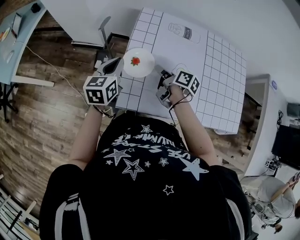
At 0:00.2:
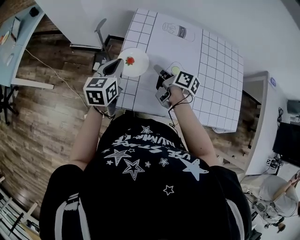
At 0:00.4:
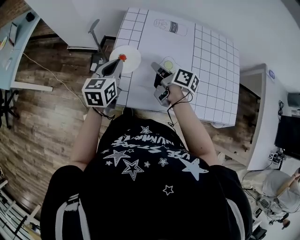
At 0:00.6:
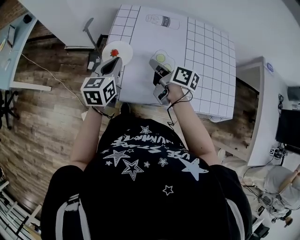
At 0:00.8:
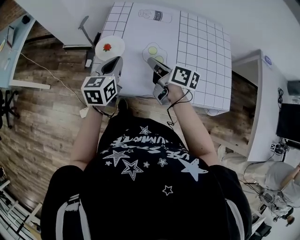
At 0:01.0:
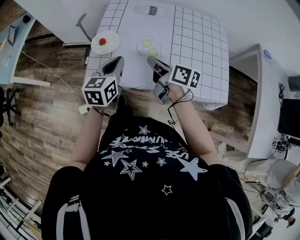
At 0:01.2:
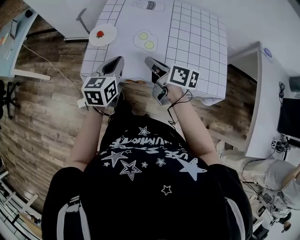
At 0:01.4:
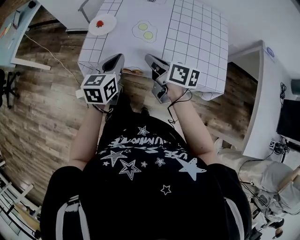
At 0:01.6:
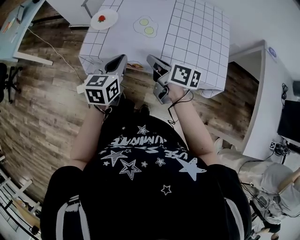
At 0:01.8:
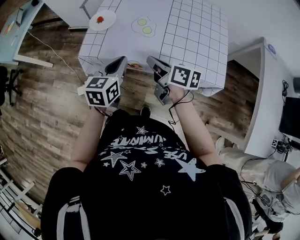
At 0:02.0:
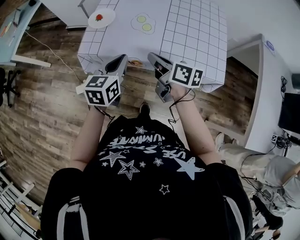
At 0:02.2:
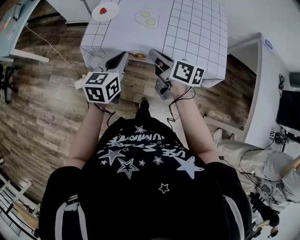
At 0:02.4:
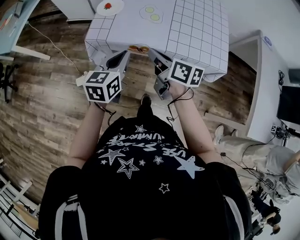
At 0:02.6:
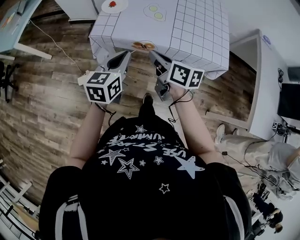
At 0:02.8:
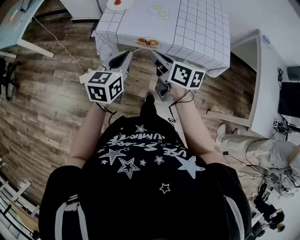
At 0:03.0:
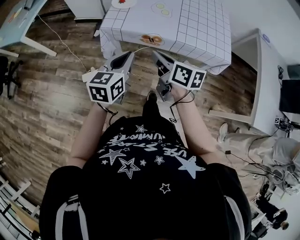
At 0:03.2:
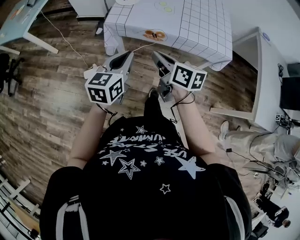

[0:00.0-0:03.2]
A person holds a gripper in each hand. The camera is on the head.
0:00.0 to 0:01.6: The left gripper shifts by approximately 35 cm.
0:01.6 to 0:03.2: The left gripper moves about 20 cm.

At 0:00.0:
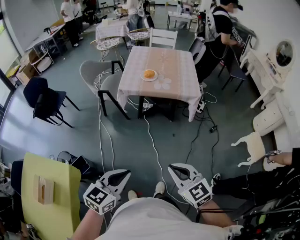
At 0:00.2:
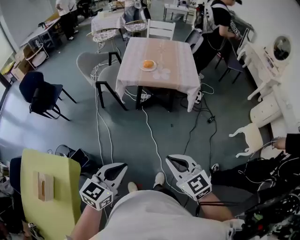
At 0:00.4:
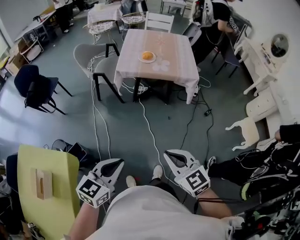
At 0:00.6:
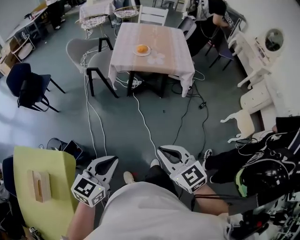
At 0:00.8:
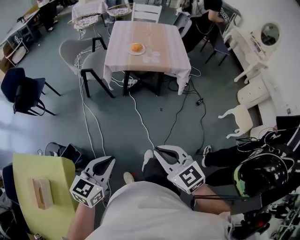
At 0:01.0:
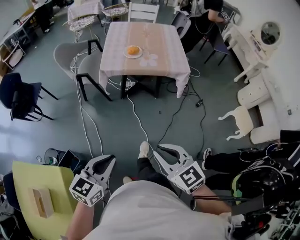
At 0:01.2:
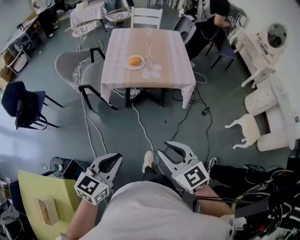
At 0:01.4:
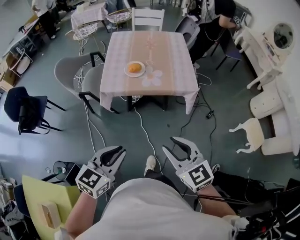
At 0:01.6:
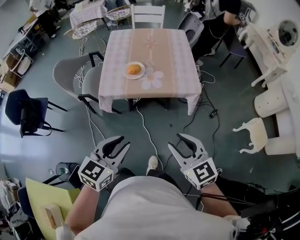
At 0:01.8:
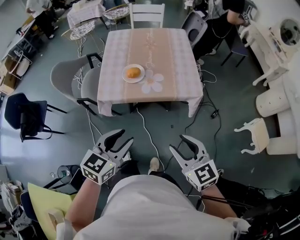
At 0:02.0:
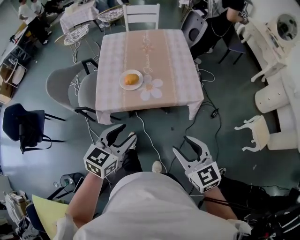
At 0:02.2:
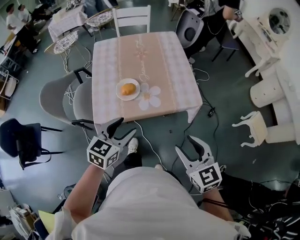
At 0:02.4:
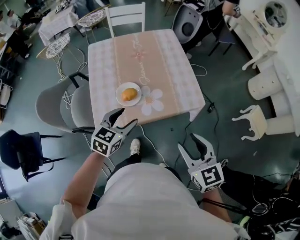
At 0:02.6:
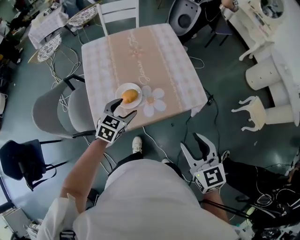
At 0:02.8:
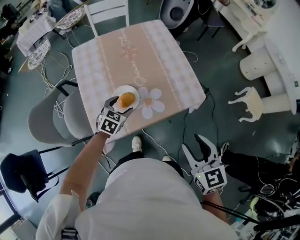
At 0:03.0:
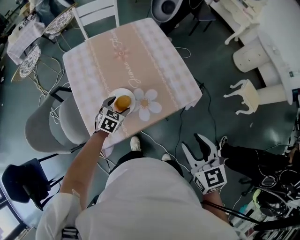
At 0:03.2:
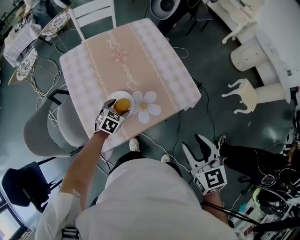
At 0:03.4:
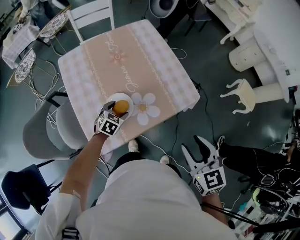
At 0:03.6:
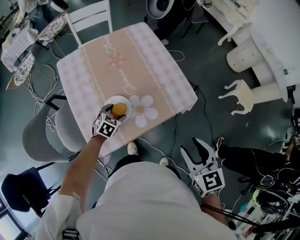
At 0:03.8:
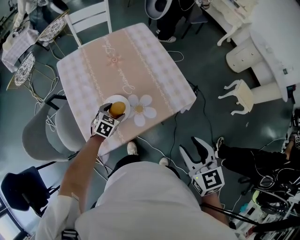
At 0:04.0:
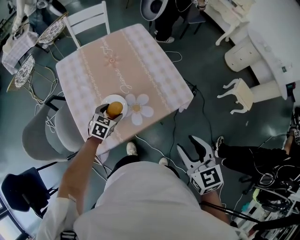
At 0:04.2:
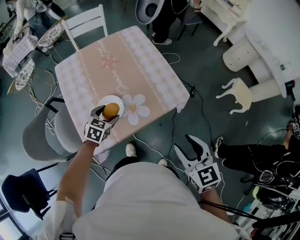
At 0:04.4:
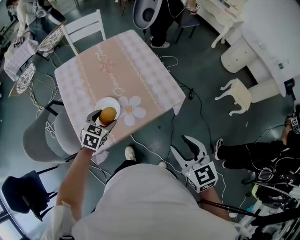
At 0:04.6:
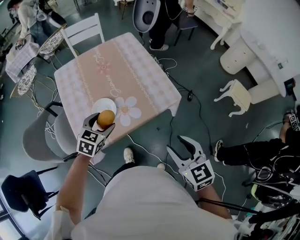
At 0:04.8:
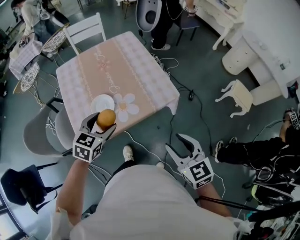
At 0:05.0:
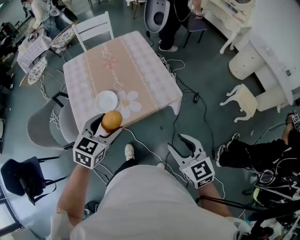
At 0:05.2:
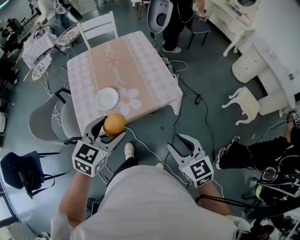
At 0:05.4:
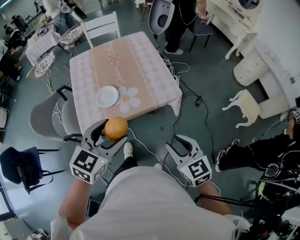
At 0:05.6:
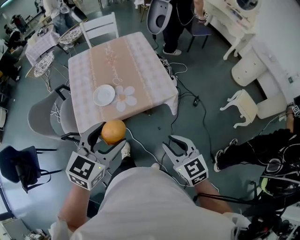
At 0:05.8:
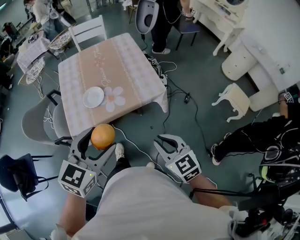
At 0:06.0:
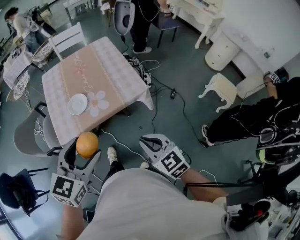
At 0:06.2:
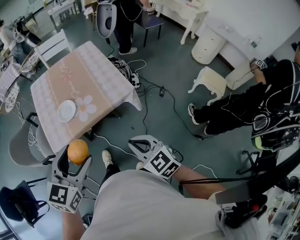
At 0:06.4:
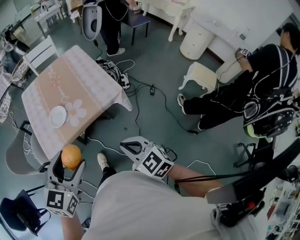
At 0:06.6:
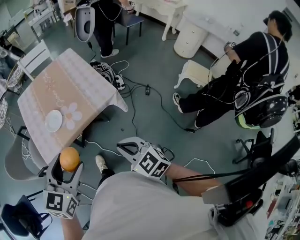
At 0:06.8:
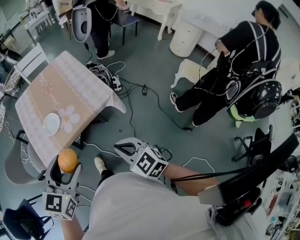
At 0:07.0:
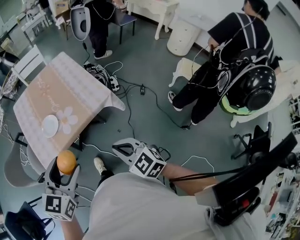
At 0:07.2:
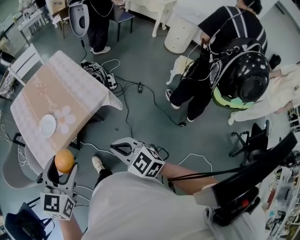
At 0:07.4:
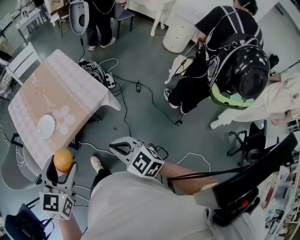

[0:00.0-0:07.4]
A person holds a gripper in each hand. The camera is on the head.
0:00.0 to 0:01.4: Both grippers travel together forward, some 25 cm. The right gripper opens.
0:01.4 to 0:03.0: The left gripper ends up some 60 cm from where it was, turns by approximately 40 degrees, and opens. The right gripper moves approximately 30 cm, and rotates about 40 degrees.
0:03.0 to 0:04.4: The left gripper goes approximately 10 cm upward.
0:04.4 to 0:06.0: The left gripper is displaced backward, upward and to the right by about 40 cm, and turns by some 20 degrees. Meanwhile the right gripper shifts some 15 cm backward and to the right, and closes up.
0:06.0 to 0:07.4: The grippers move only a little.

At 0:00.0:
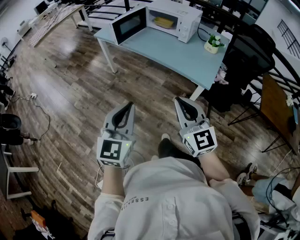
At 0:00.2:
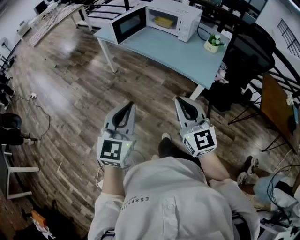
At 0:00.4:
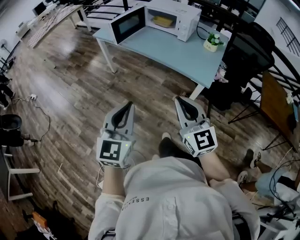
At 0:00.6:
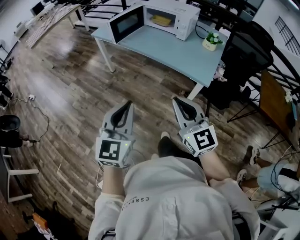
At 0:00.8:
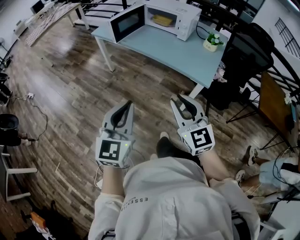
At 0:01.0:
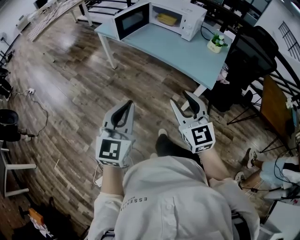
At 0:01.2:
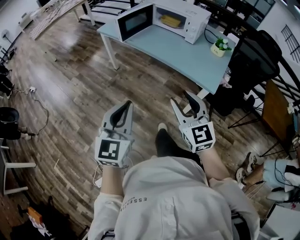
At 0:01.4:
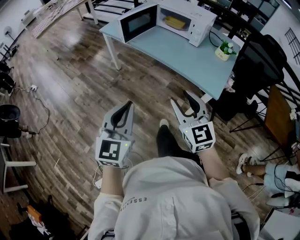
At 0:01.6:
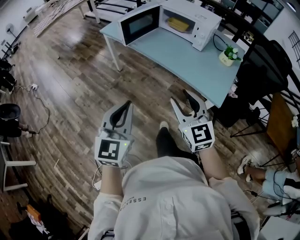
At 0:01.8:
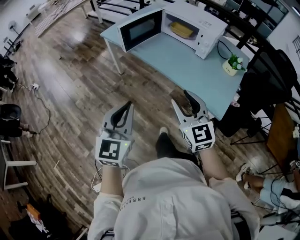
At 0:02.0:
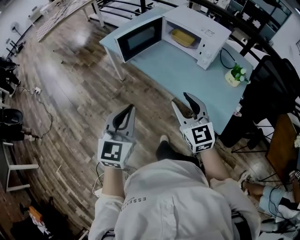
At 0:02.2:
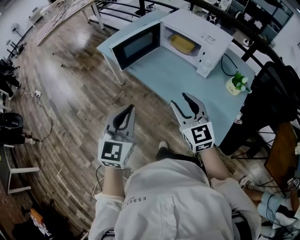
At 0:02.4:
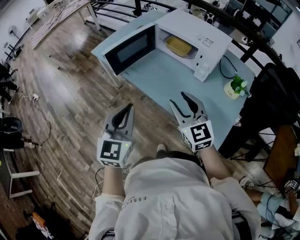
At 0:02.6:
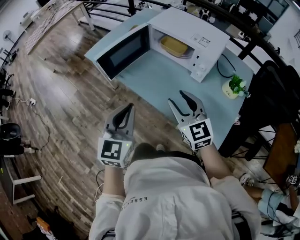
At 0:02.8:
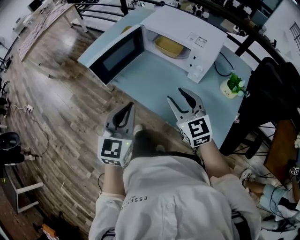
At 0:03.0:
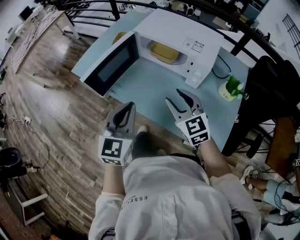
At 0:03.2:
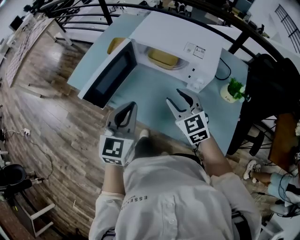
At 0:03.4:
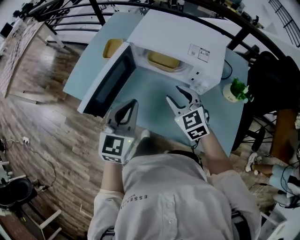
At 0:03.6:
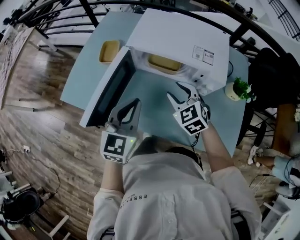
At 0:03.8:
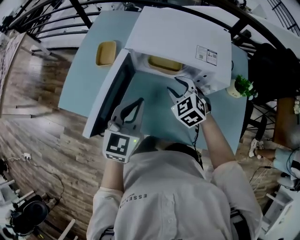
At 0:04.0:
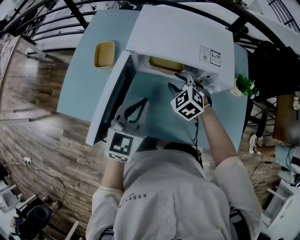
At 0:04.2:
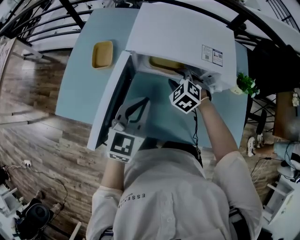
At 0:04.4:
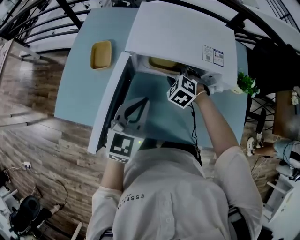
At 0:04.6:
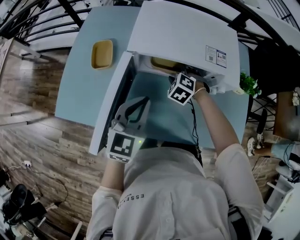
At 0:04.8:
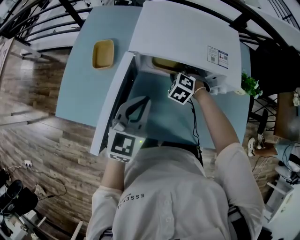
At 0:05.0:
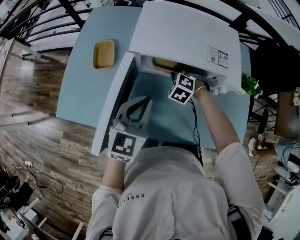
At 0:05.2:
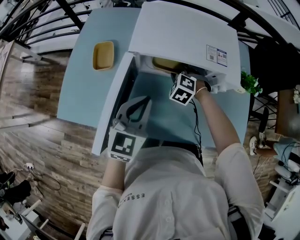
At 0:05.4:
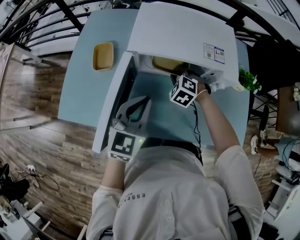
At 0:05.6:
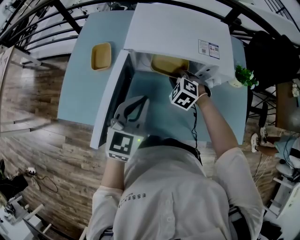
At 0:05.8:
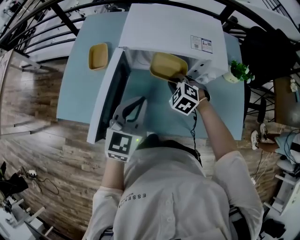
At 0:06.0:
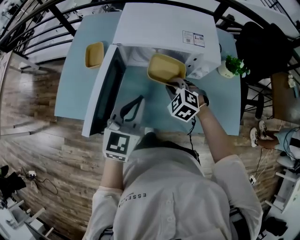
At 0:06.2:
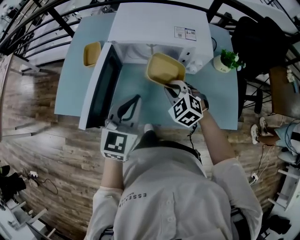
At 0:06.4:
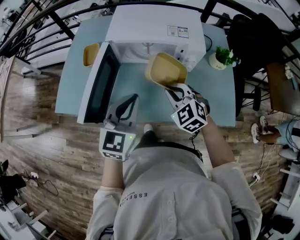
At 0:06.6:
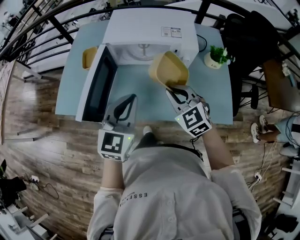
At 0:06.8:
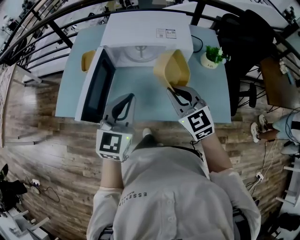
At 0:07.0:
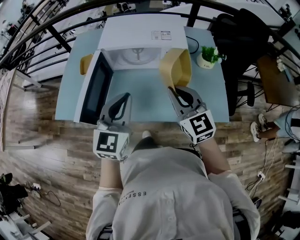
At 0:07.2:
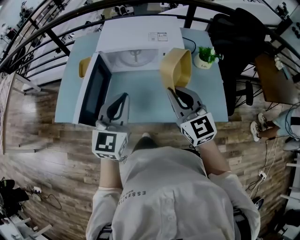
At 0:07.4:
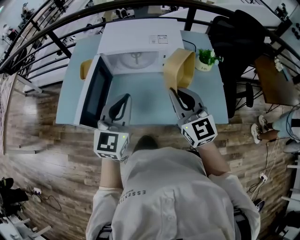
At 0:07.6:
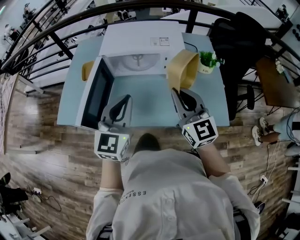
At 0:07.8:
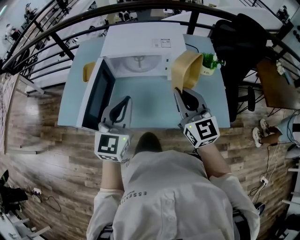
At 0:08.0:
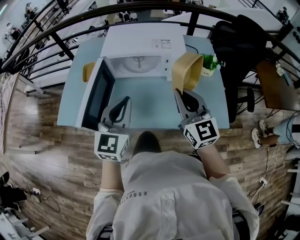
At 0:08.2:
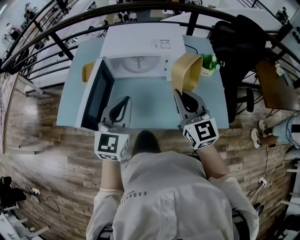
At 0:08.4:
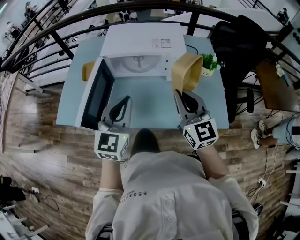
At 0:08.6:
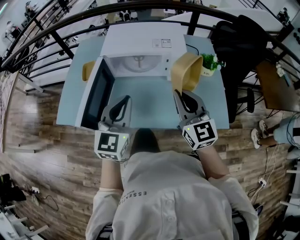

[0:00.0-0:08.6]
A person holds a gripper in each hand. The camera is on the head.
0:00.0 to 0:01.4: Both grippers move forward, roughly 10 cm. The right gripper opens.
0:01.4 to 0:02.8: Both grippers are carried forward, about 40 cm.
0:02.8 to 0:04.4: The left gripper shifts by roughly 30 cm, and turns by approximately 40 degrees. The right gripper changes place by approximately 35 cm, and points its fingers approximately 40 degrees further downward.
0:04.4 to 0:05.8: The right gripper goes roughly 5 cm backward, and closes its fingers.
0:05.8 to 0:07.2: The left gripper heads backward, upward and to the right, covering about 15 cm. Meanwhile the right gripper goes about 30 cm upward, backward and to the right, and tilts its fingers some 50 degrees upward.
0:07.2 to 0:08.6: The grippers stay close to where they were, moving slightly.

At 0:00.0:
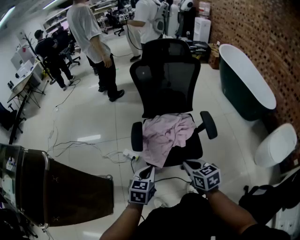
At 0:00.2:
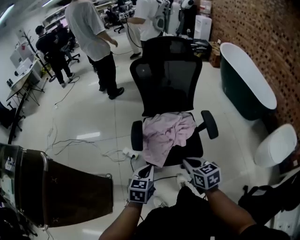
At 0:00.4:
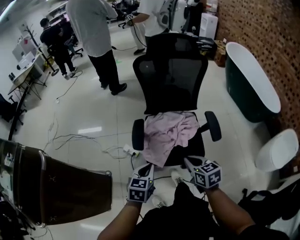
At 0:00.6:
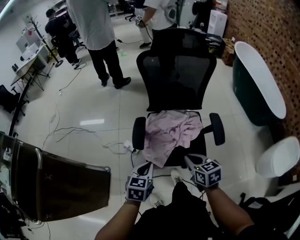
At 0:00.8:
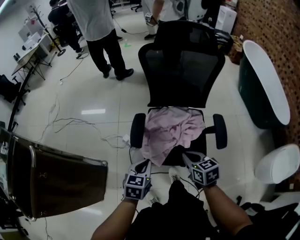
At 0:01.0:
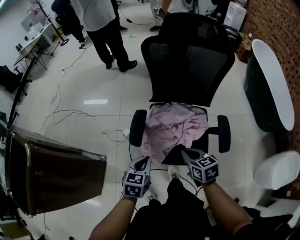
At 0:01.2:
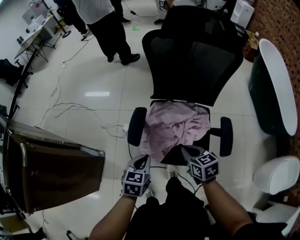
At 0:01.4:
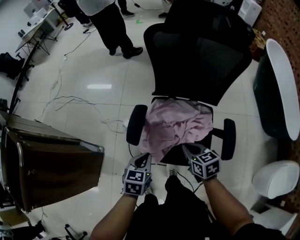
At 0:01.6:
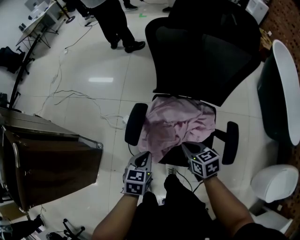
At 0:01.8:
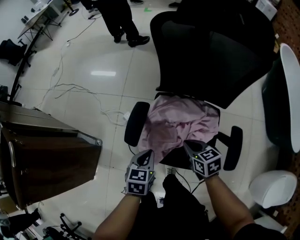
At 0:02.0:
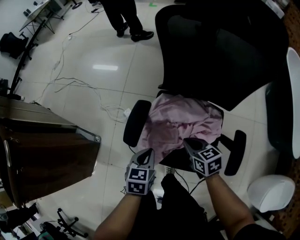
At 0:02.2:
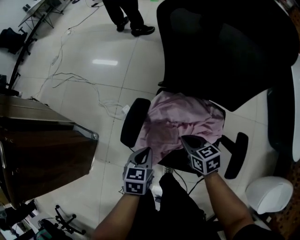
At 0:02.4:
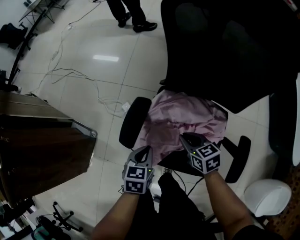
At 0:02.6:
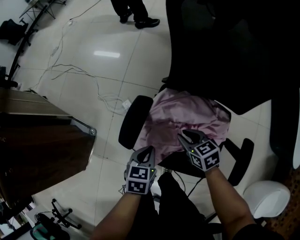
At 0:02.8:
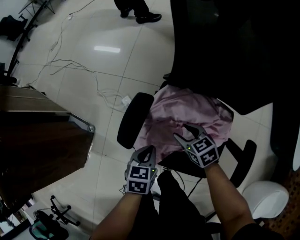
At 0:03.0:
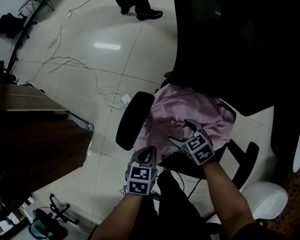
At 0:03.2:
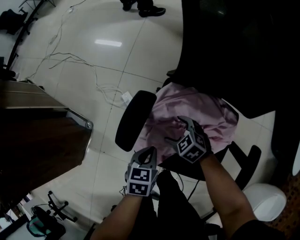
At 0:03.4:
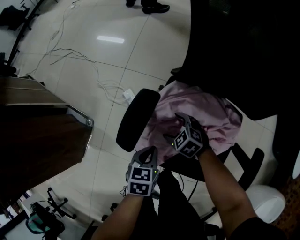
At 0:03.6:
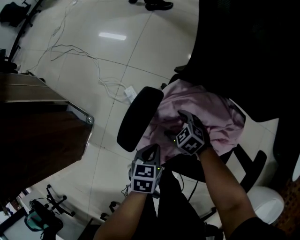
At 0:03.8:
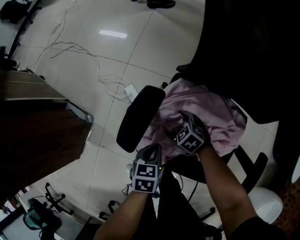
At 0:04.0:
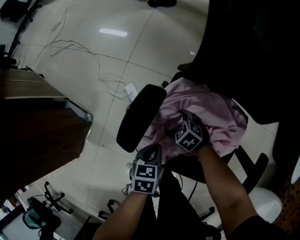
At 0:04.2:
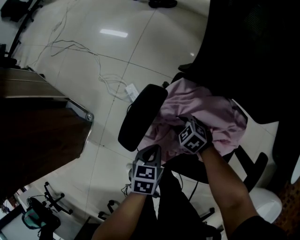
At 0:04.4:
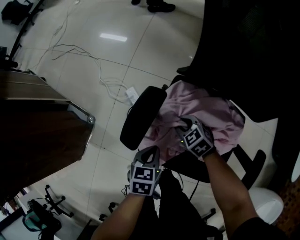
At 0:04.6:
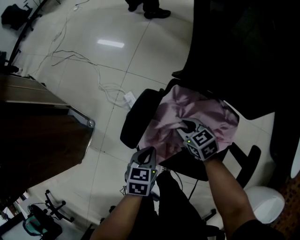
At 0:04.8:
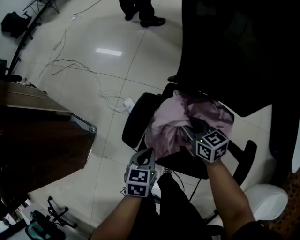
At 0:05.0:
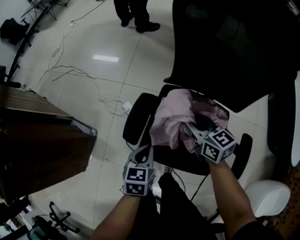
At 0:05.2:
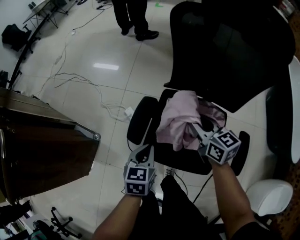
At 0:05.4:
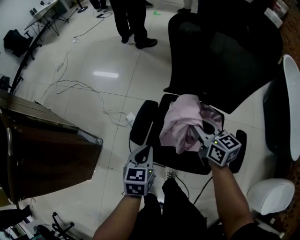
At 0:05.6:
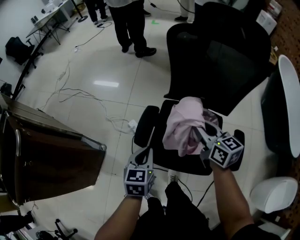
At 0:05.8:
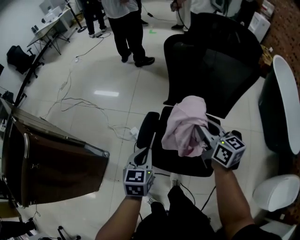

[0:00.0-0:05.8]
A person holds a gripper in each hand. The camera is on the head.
0:00.0 to 0:01.4: Both grippers travel together forward and downward, roughly 25 cm.
0:01.4 to 0:02.8: Both grippers move downward and forward, some 20 cm. The right gripper swivels approximately 20 degrees, and opens.
0:02.8 to 0:04.4: The right gripper is displaced downward by roughly 10 cm, swivels about 20 degrees, and opens, then closes again, while the left gripper goes approximately 5 cm downward.
0:04.4 to 0:05.8: The left gripper shifts approximately 25 cm upward, and swivels about 30 degrees; the right gripper is displaced upward by about 40 cm, and angles its fingers upward, by about 40 degrees.
